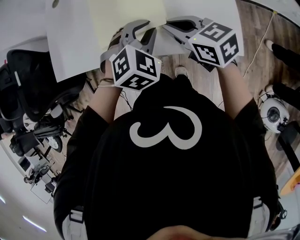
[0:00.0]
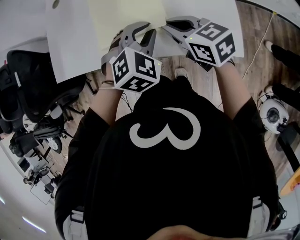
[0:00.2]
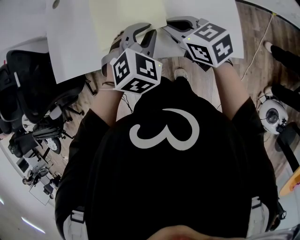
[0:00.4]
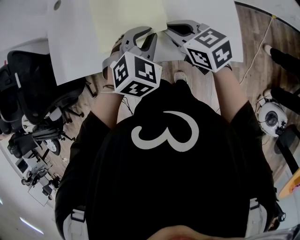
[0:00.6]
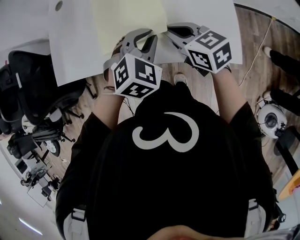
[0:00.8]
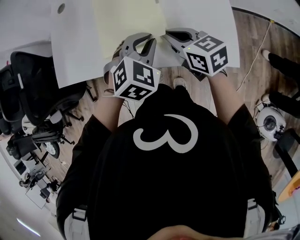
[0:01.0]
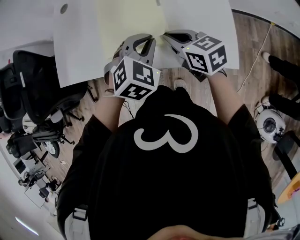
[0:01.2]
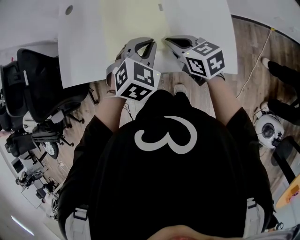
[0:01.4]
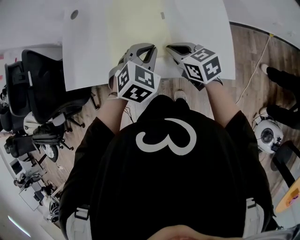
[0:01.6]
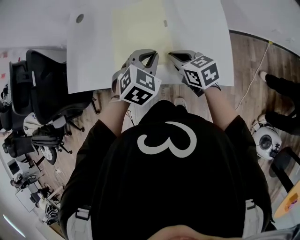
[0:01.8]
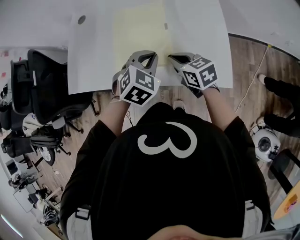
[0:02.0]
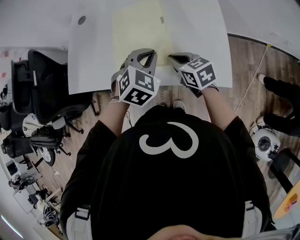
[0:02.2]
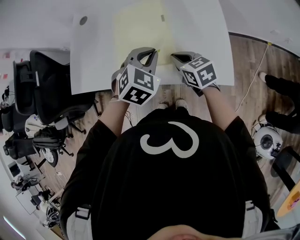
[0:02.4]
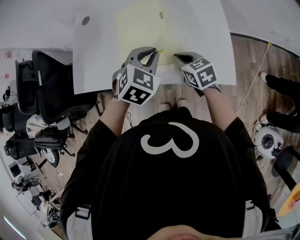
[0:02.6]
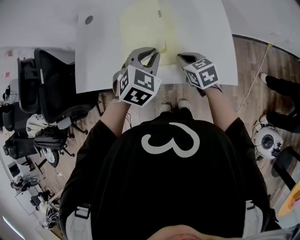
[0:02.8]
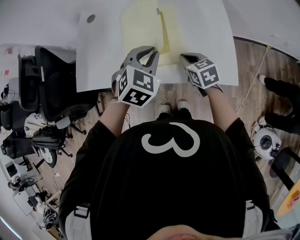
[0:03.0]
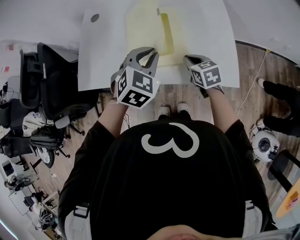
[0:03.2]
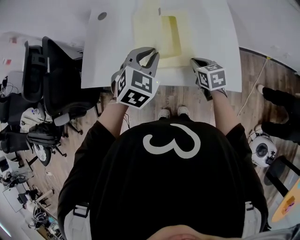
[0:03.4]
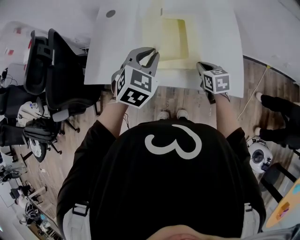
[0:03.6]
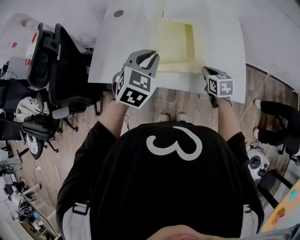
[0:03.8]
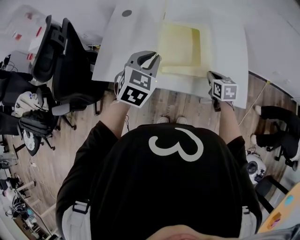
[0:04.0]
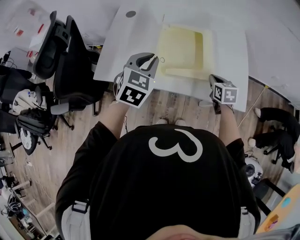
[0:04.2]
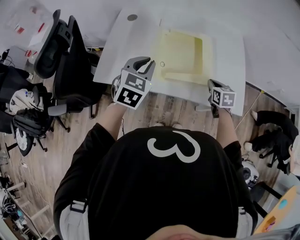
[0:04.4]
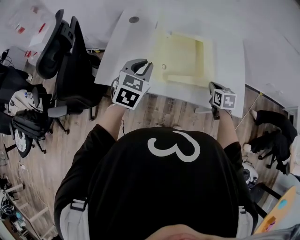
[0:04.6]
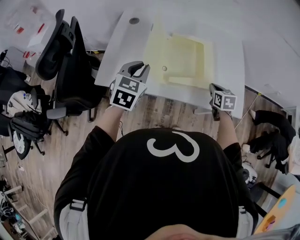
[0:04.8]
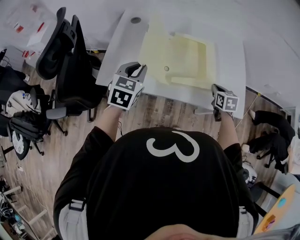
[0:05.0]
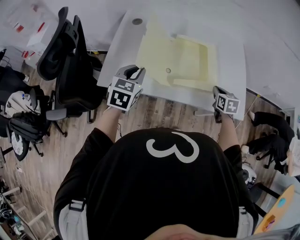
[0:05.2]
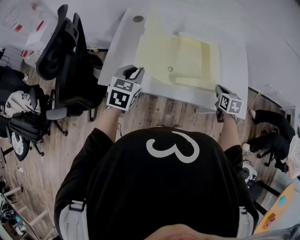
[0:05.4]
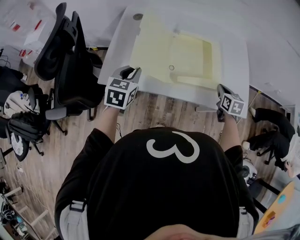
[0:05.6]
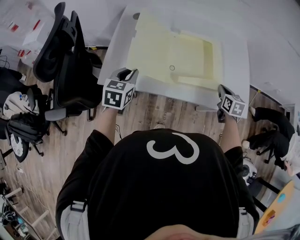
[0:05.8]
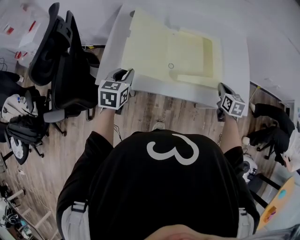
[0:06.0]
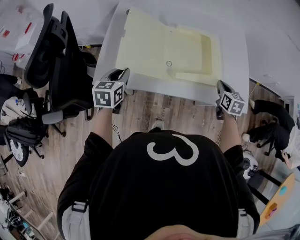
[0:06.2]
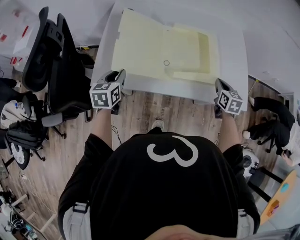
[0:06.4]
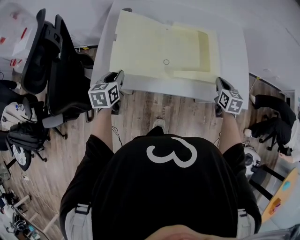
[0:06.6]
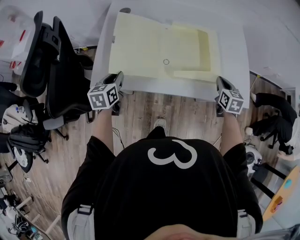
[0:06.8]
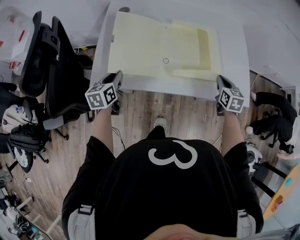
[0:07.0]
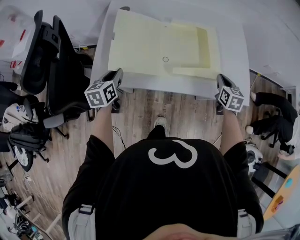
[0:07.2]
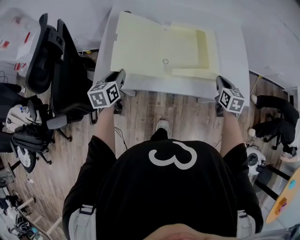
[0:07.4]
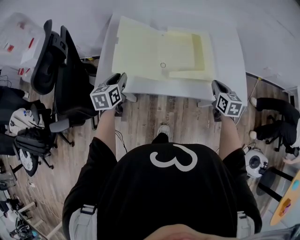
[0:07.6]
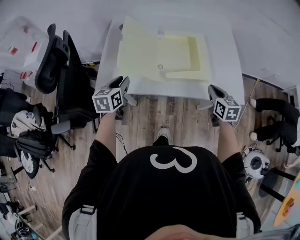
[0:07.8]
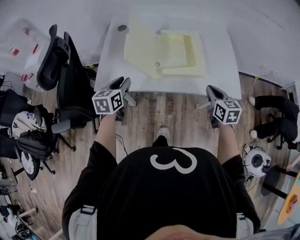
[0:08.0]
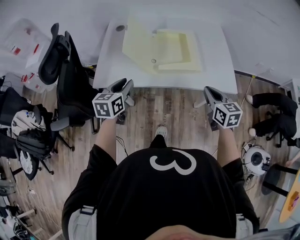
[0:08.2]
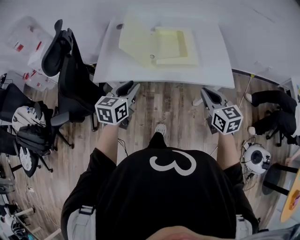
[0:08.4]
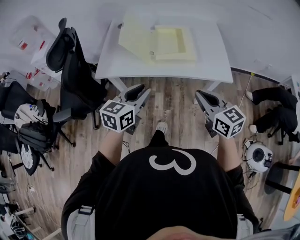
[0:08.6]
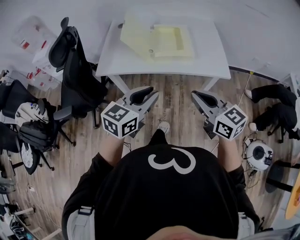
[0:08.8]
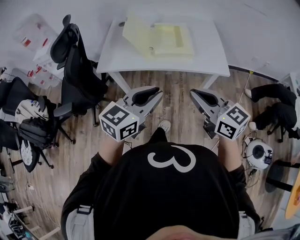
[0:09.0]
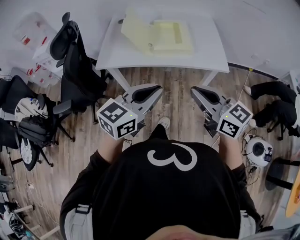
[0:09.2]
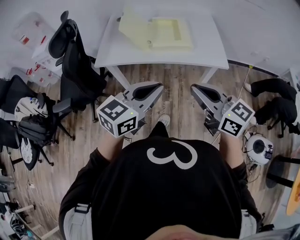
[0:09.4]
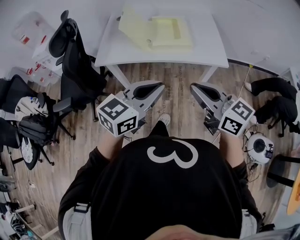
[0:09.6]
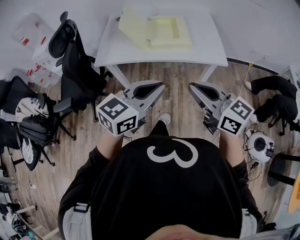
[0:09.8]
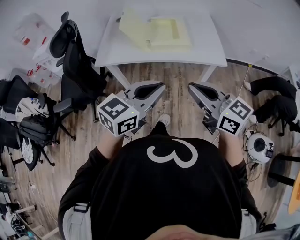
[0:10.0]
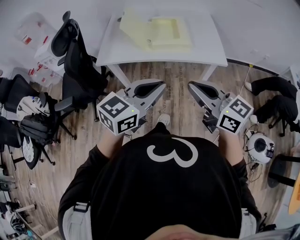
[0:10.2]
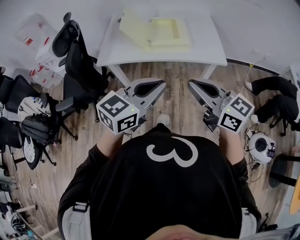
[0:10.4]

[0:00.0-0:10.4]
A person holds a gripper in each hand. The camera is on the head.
0:00.0 to 0:01.4: There are only small adjustments of the grippers.
0:01.4 to 0:03.0: The left gripper heads upward and to the left, covering some 10 cm.
0:03.0 to 0:04.4: The left gripper heads to the left, covering approximately 20 cm, and changes its angle by about 20 degrees.
0:04.4 to 0:06.0: The left gripper goes about 20 cm to the left and downward, and turns by roughly 20 degrees.
0:07.4 to 0:09.0: The right gripper moves backward and upward, roughly 40 cm, and swivels roughly 40 degrees. Meanwhile the left gripper shifts roughly 50 cm backward, to the right and upward, and turns by approximately 40 degrees.
0:09.0 to 0:10.4: The right gripper ends up approximately 5 cm from where it was. The left gripper ends up approximately 5 cm from where it was.

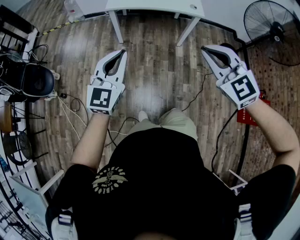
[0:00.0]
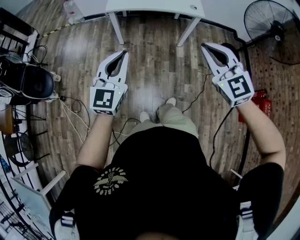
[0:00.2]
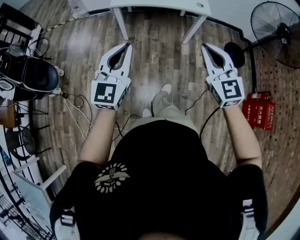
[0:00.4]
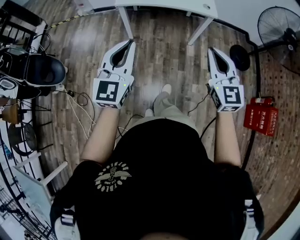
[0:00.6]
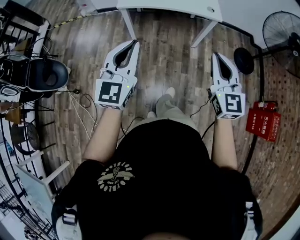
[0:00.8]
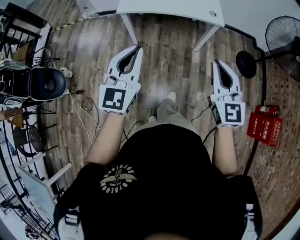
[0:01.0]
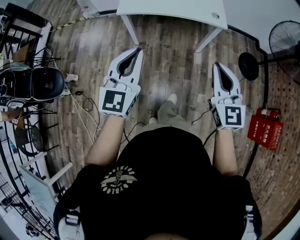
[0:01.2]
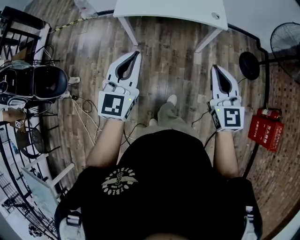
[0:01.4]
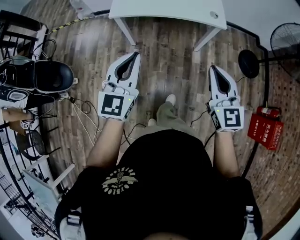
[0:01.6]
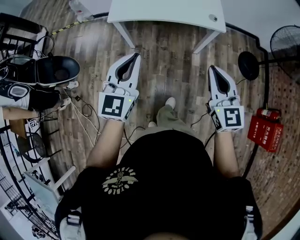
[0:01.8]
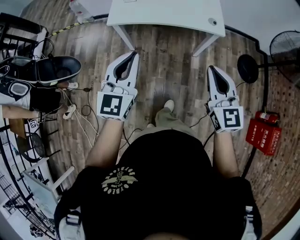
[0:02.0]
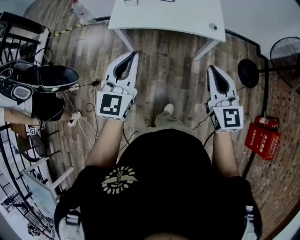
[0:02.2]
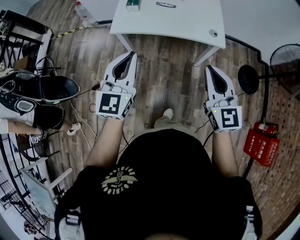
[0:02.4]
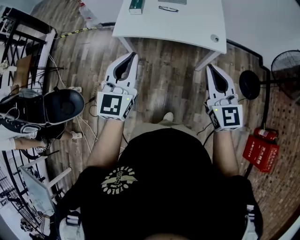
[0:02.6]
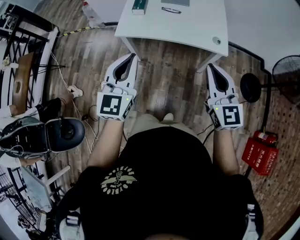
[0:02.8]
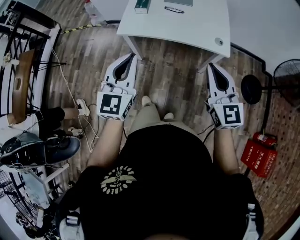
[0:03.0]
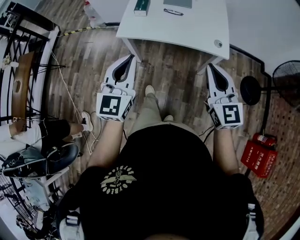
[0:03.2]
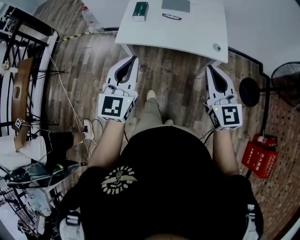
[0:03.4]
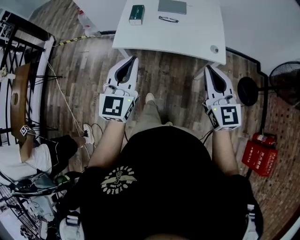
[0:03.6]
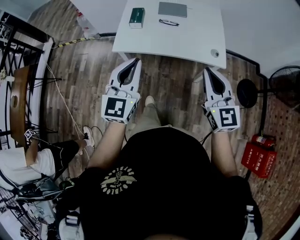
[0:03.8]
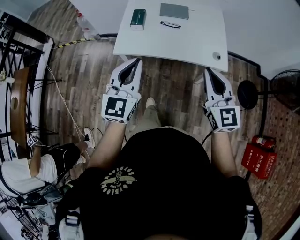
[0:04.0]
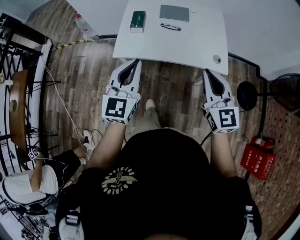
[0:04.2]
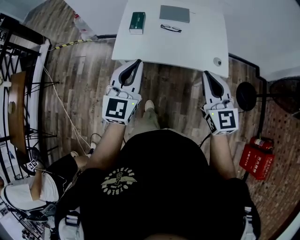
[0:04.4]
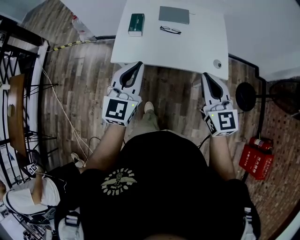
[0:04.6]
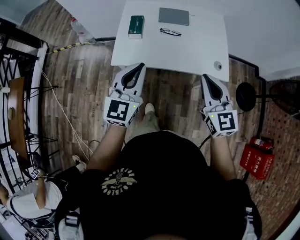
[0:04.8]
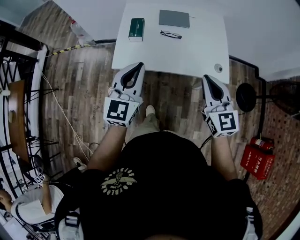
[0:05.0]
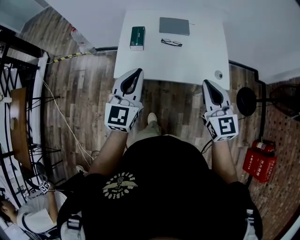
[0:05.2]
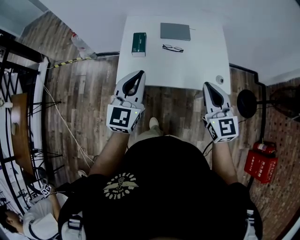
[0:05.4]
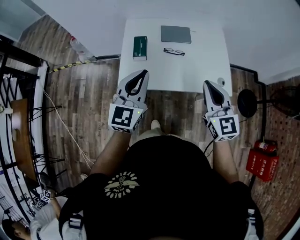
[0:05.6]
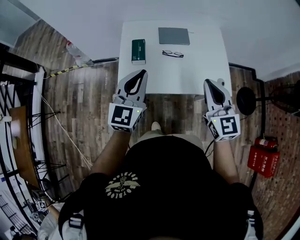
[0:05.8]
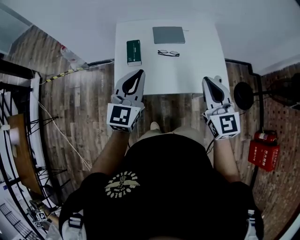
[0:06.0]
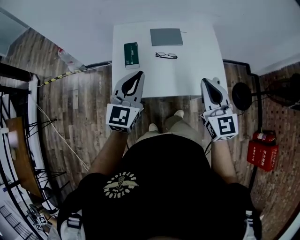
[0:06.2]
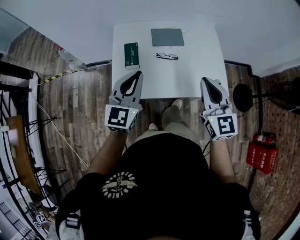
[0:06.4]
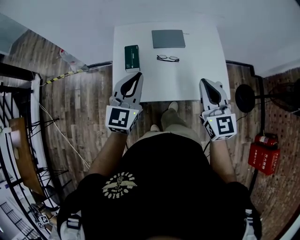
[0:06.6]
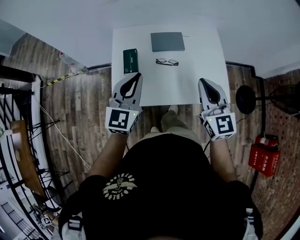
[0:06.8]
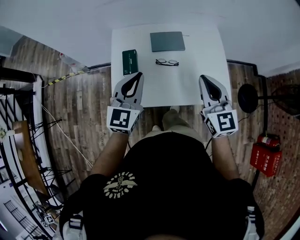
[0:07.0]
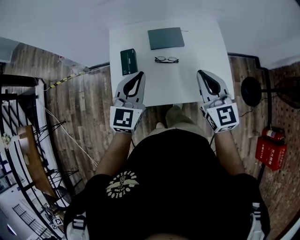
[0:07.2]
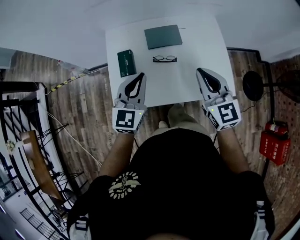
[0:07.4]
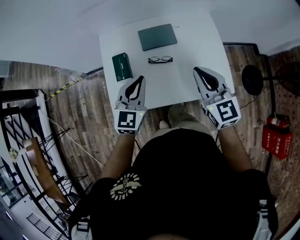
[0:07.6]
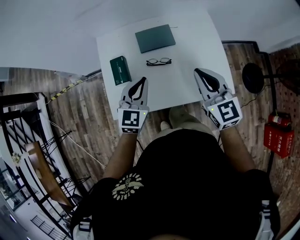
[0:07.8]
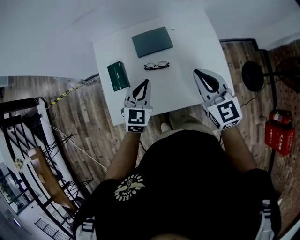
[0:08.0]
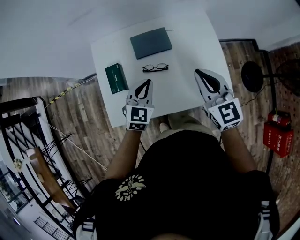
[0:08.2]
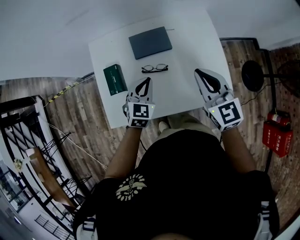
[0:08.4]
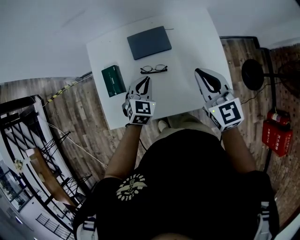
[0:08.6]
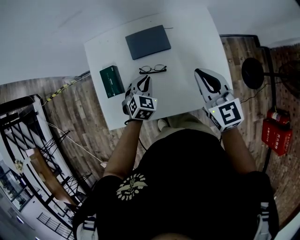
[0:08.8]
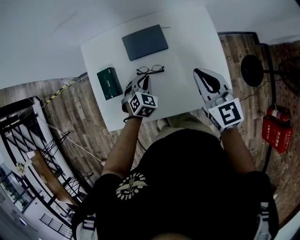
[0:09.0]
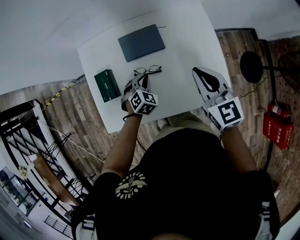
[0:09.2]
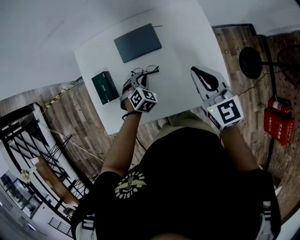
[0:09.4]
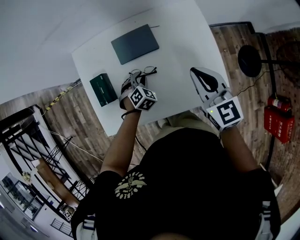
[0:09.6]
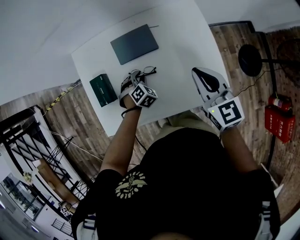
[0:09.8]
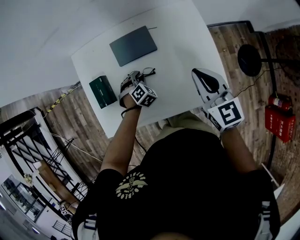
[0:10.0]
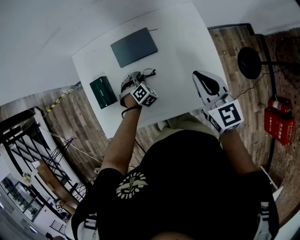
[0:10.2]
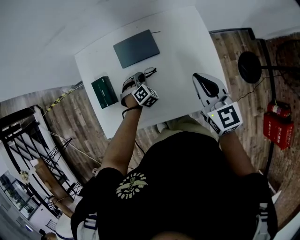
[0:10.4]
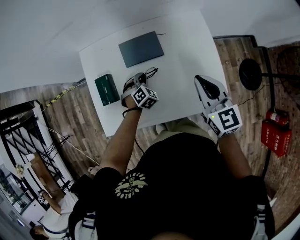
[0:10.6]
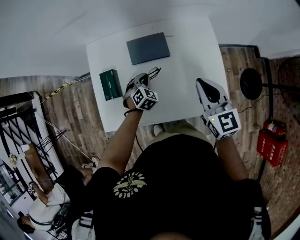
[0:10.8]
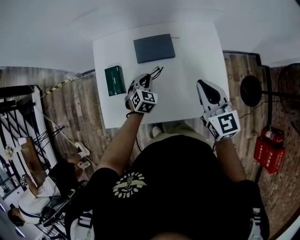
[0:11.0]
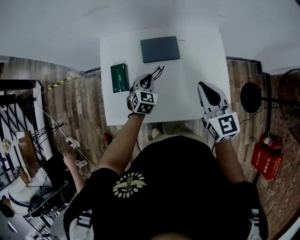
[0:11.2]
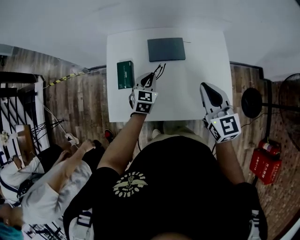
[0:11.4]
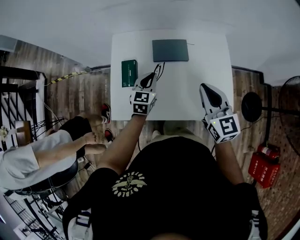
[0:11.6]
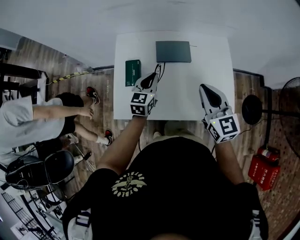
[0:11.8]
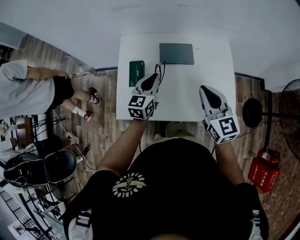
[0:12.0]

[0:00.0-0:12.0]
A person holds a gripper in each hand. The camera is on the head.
0:00.0 to 0:01.6: The left gripper shifts some 20 cm forward, while the right gripper heads forward and downward, covering some 25 cm, and turns by some 30 degrees.
0:01.6 to 0:03.0: Both grippers travel together forward, approximately 10 cm.
0:03.0 to 0:04.4: The two grippers go about 15 cm forward.
0:04.4 to 0:06.0: The left gripper shifts some 15 cm forward; the right gripper shifts some 15 cm forward and to the left.
0:06.0 to 0:07.6: The left gripper moves forward, downward and to the right, some 15 cm. Meanwhile the right gripper goes some 15 cm forward.
0:07.6 to 0:09.0: The right gripper goes approximately 15 cm forward, downward and to the right. The left gripper shifts approximately 25 cm downward and forward, and tilts its fingers some 30 degrees downward.
0:09.0 to 0:10.4: The left gripper goes some 10 cm downward, and turns by about 20 degrees.
0:10.4 to 0:12.0: The left gripper travels upward and to the left by about 25 cm, and tilts its fingers approximately 40 degrees upward, while the right gripper moves to the left, upward and backward, roughly 15 cm.

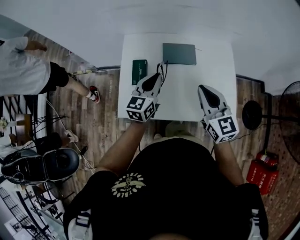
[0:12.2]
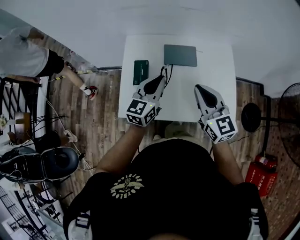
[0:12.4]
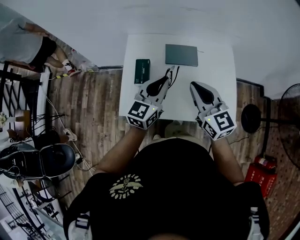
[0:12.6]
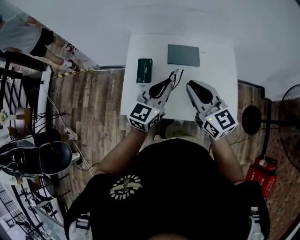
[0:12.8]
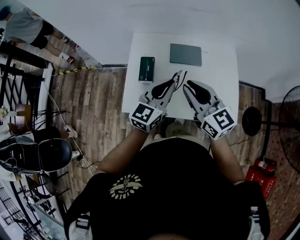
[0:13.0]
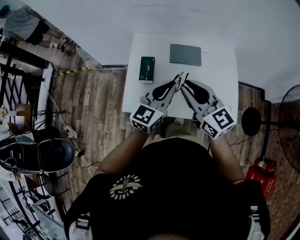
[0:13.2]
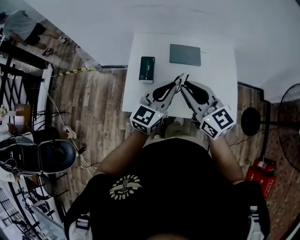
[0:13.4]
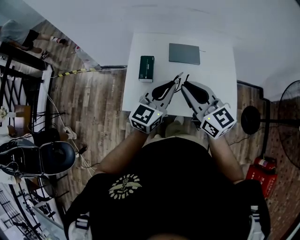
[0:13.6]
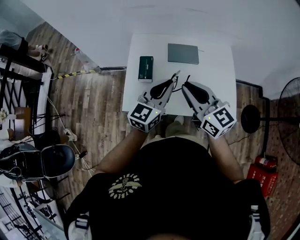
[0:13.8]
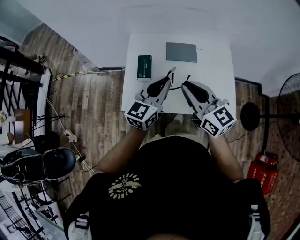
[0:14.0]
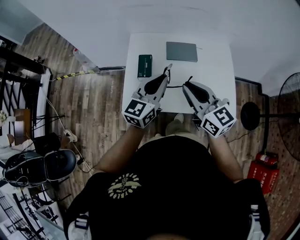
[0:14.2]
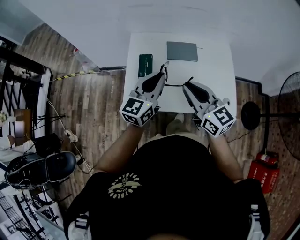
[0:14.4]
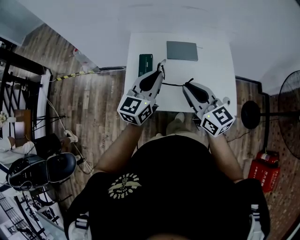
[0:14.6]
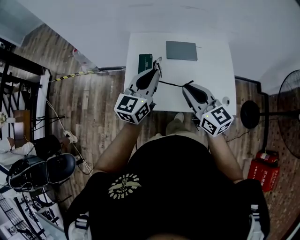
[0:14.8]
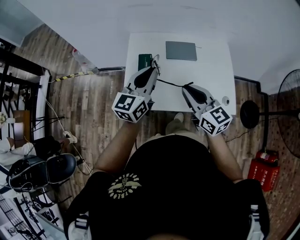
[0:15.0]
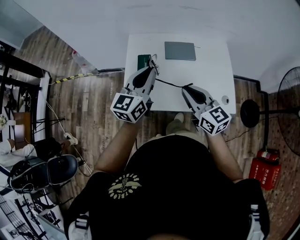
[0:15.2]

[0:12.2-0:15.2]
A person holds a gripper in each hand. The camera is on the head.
0:12.2 to 0:13.8: The left gripper shifts roughly 15 cm backward and upward. Meanwhile the right gripper shifts some 10 cm to the left and backward.
0:13.8 to 0:15.2: The right gripper is displaced downward by roughly 5 cm. The left gripper moves to the left, about 5 cm.
